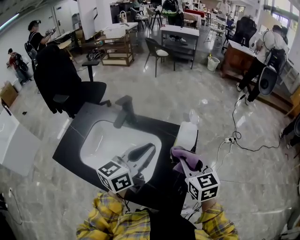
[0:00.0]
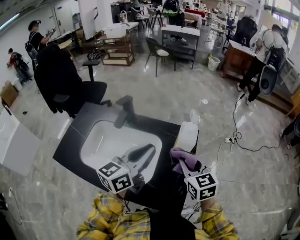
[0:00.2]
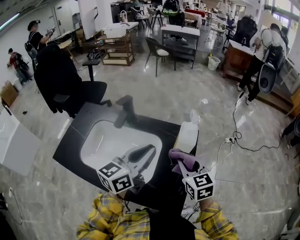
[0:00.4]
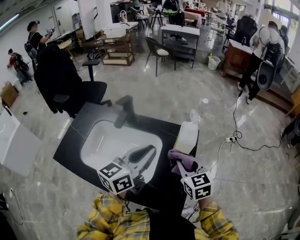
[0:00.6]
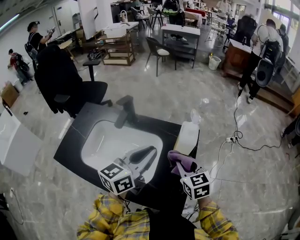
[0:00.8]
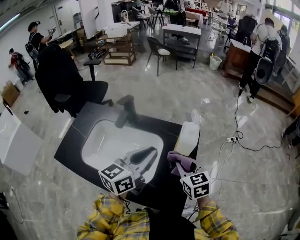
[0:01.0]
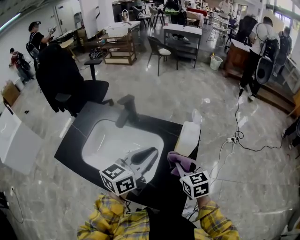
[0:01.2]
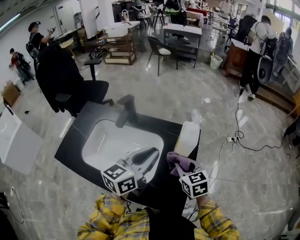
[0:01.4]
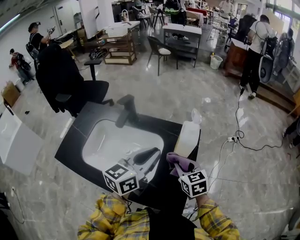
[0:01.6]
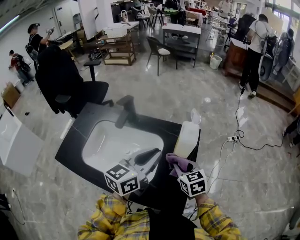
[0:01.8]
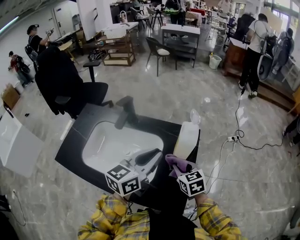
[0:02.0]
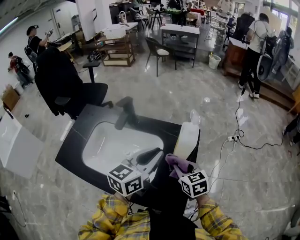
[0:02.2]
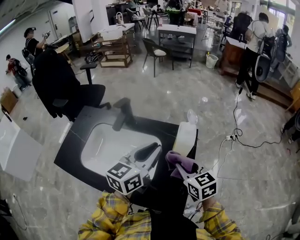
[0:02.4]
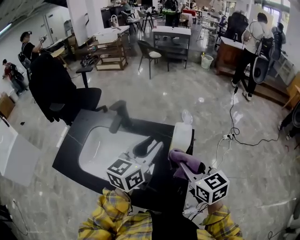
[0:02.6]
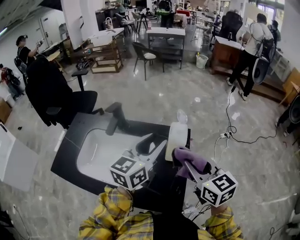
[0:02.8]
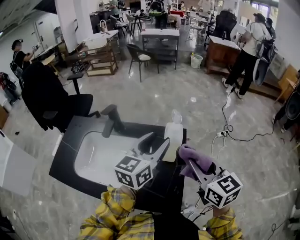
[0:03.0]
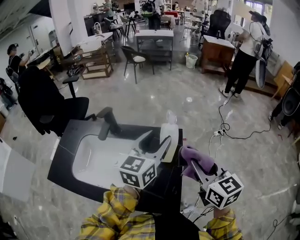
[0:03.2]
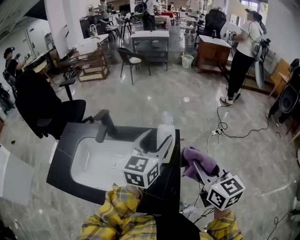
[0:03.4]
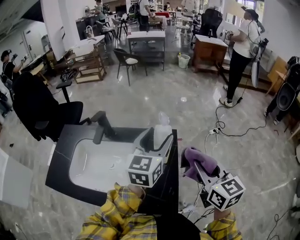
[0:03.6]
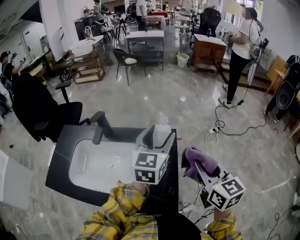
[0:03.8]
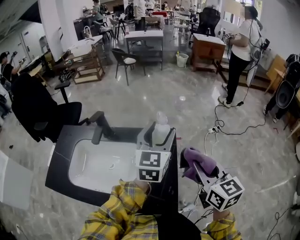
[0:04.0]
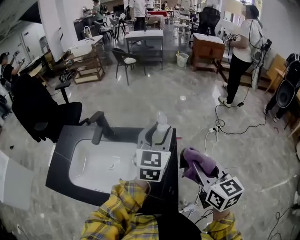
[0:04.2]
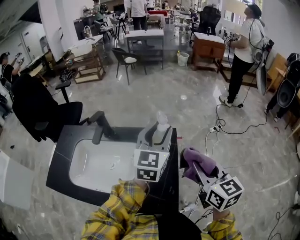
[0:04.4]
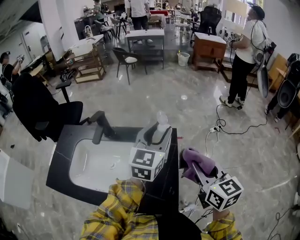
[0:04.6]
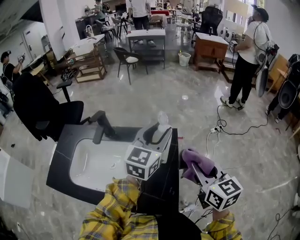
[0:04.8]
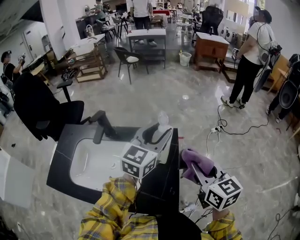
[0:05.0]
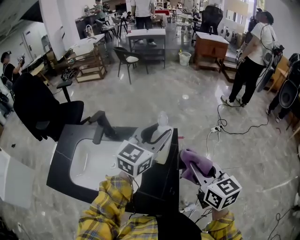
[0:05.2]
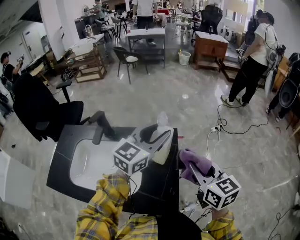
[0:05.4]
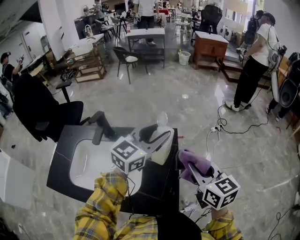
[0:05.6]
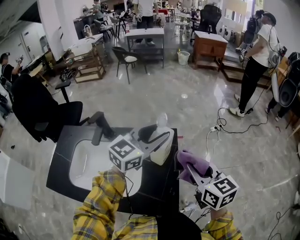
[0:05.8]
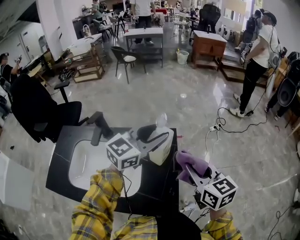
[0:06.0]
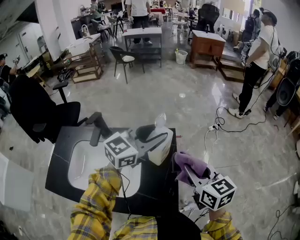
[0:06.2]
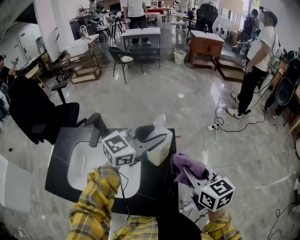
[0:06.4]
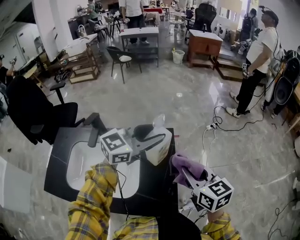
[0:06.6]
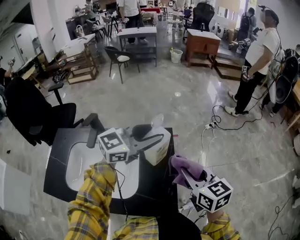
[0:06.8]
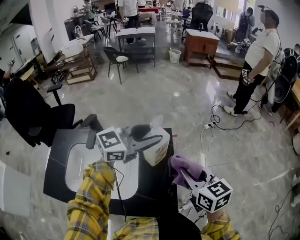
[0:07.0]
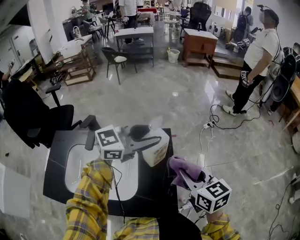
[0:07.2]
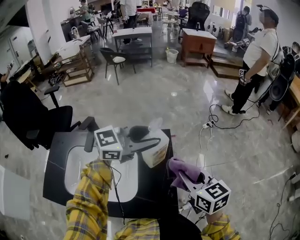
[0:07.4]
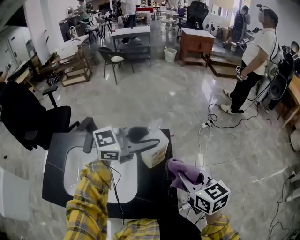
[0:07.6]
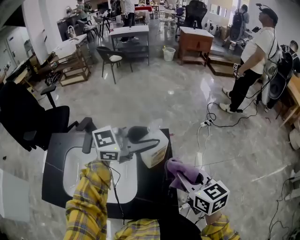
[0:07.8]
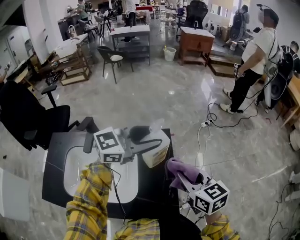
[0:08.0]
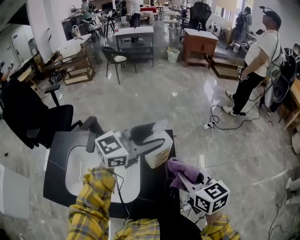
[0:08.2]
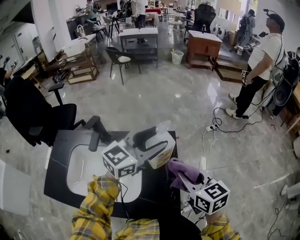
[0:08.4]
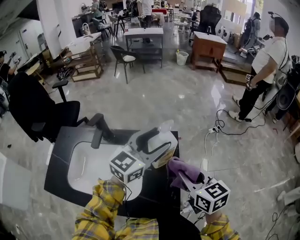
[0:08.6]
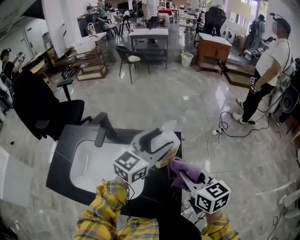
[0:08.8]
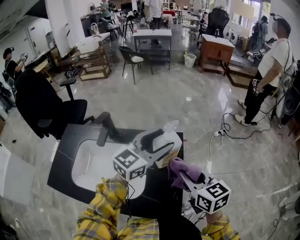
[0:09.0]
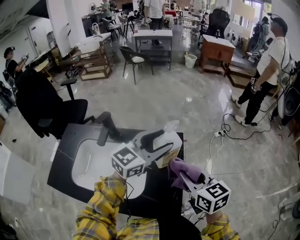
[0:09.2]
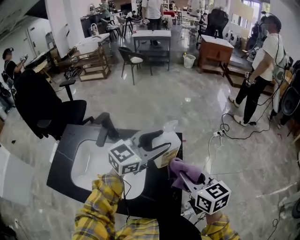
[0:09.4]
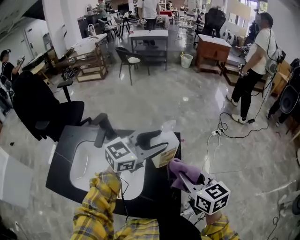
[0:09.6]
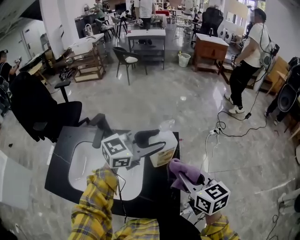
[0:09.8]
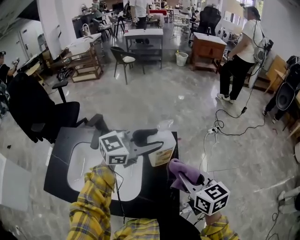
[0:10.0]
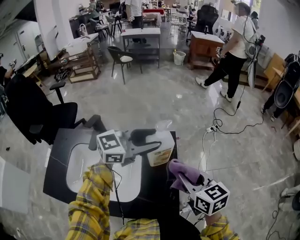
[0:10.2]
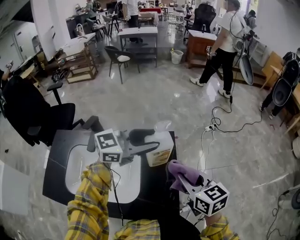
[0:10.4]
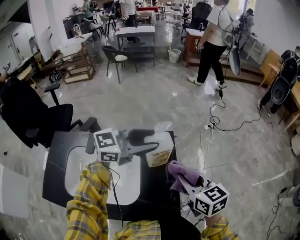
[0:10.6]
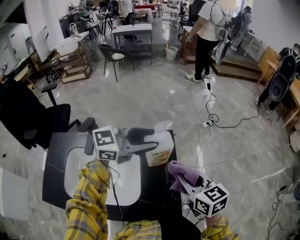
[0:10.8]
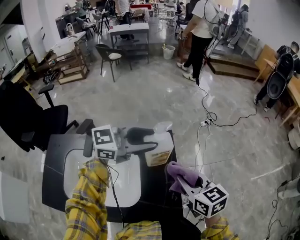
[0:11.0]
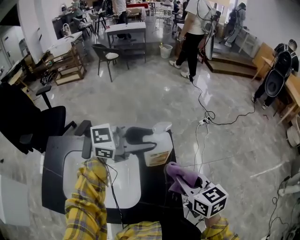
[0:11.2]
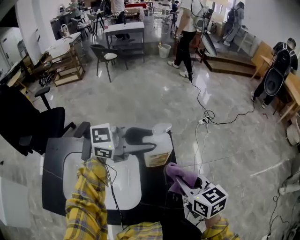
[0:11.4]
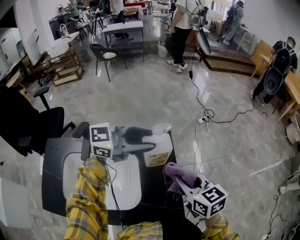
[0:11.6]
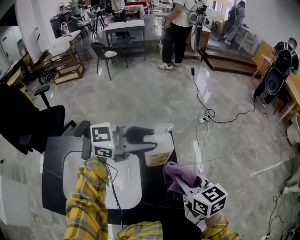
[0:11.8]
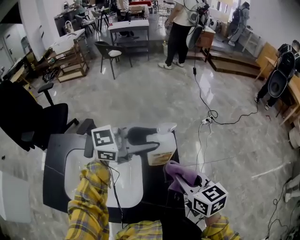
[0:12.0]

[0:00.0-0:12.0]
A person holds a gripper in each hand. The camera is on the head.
0:00.0 to 0:01.6: The right gripper shifts about 10 cm downward.
0:01.6 to 0:03.0: The right gripper goes about 20 cm upward and to the right, while the left gripper travels to the right by some 5 cm, and opens.
0:03.0 to 0:04.4: Both grippers travel together to the right, approximately 5 cm.
0:04.4 to 0:06.0: The left gripper rotates about 40 degrees.
0:06.0 to 0:07.6: The left gripper rotates about 20 degrees.
0:07.6 to 0:09.0: The left gripper swivels roughly 30 degrees, and opens up.
0:09.0 to 0:10.4: The left gripper swivels approximately 30 degrees.
0:10.4 to 0:12.0: The grippers stay close to where they were, moving slightly.

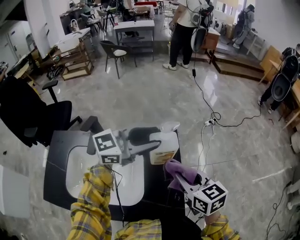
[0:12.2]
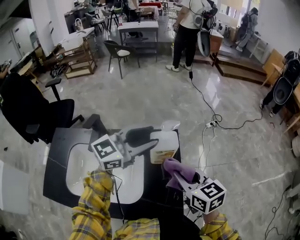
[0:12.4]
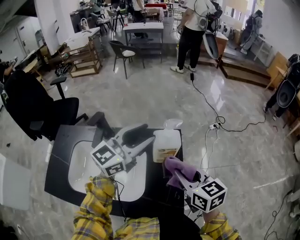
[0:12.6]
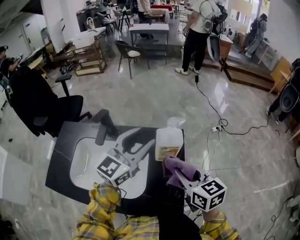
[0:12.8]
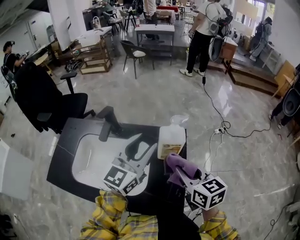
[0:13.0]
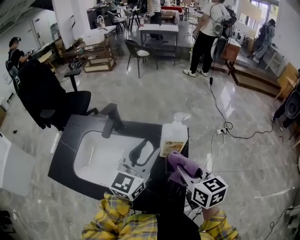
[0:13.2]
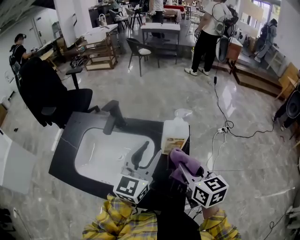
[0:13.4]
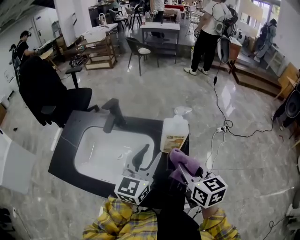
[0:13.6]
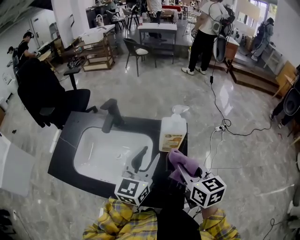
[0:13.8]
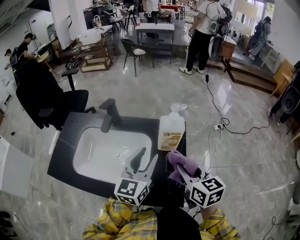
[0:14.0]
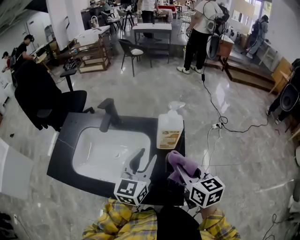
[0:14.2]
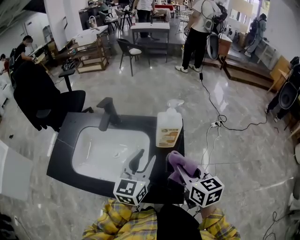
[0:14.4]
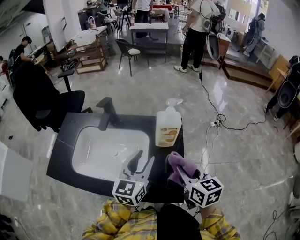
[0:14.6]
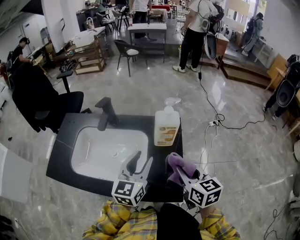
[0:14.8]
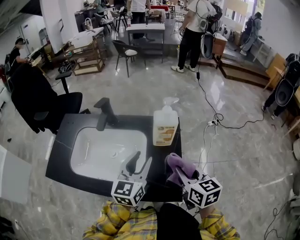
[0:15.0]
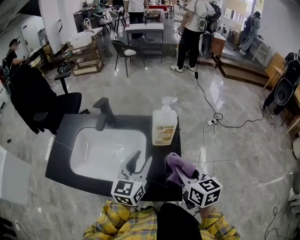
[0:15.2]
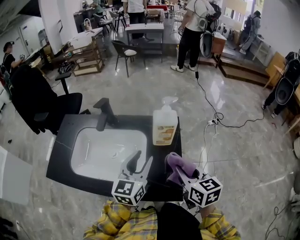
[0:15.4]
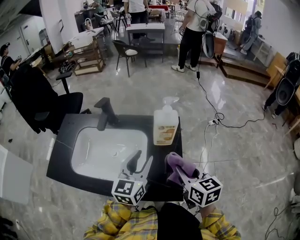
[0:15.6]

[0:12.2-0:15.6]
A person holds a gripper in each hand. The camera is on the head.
0:12.2 to 0:13.8: The left gripper changes place by some 15 cm, and turns by about 60 degrees.
0:13.8 to 0:15.6: The right gripper moves about 5 cm.

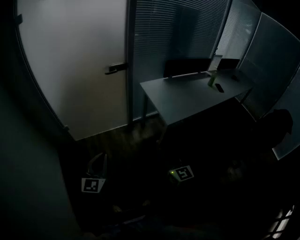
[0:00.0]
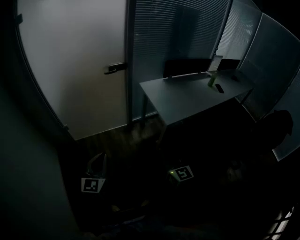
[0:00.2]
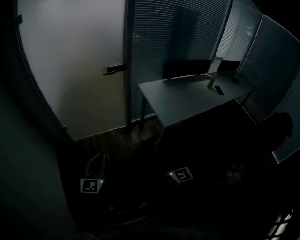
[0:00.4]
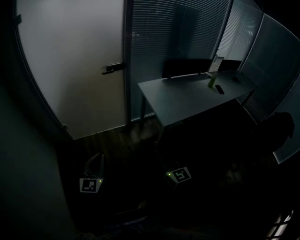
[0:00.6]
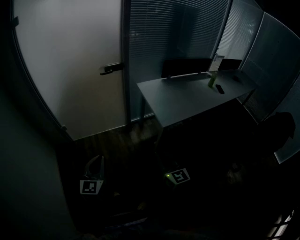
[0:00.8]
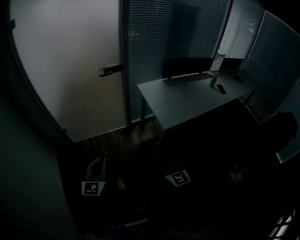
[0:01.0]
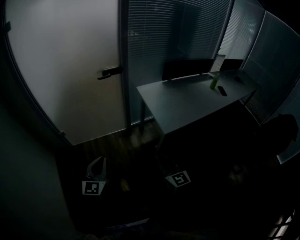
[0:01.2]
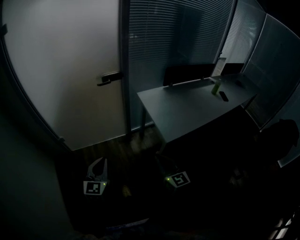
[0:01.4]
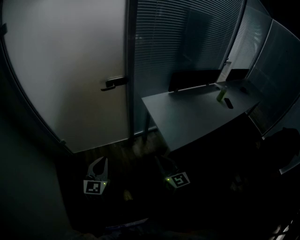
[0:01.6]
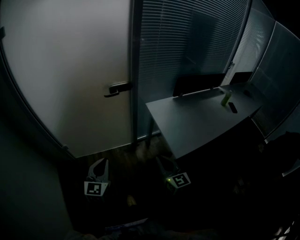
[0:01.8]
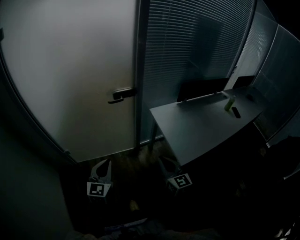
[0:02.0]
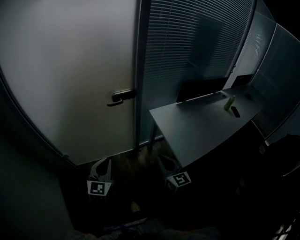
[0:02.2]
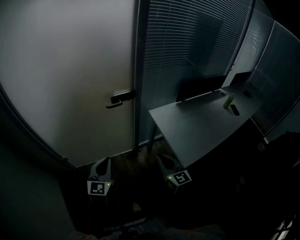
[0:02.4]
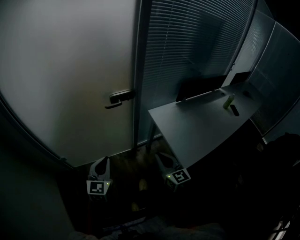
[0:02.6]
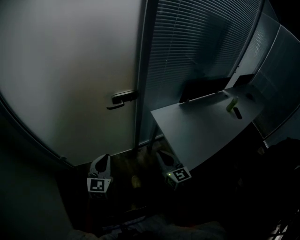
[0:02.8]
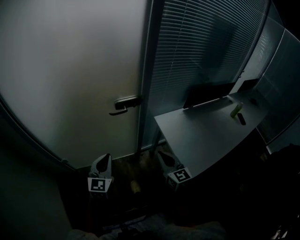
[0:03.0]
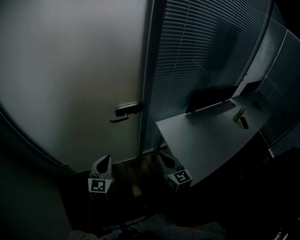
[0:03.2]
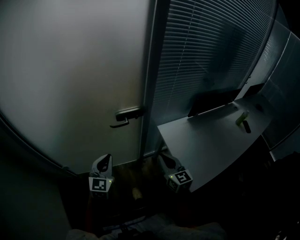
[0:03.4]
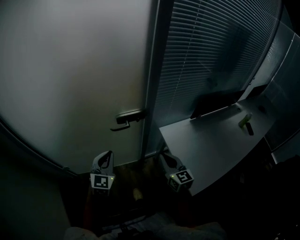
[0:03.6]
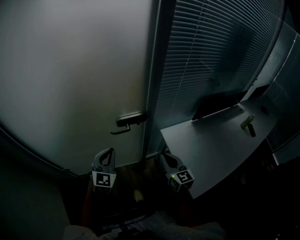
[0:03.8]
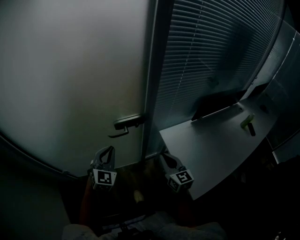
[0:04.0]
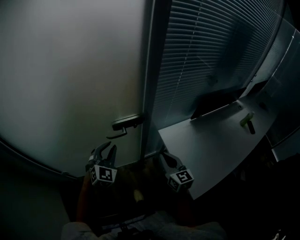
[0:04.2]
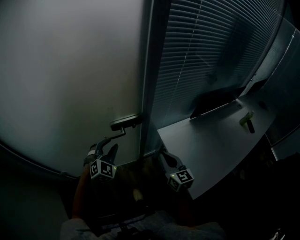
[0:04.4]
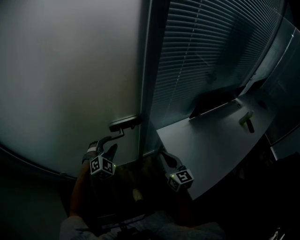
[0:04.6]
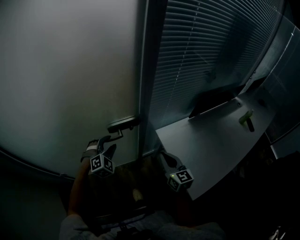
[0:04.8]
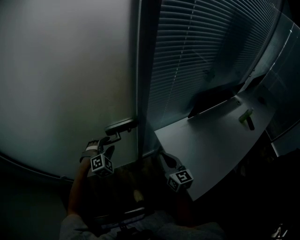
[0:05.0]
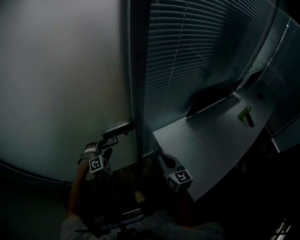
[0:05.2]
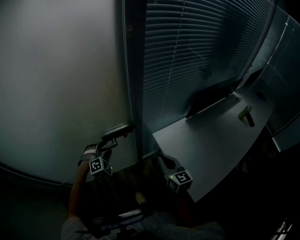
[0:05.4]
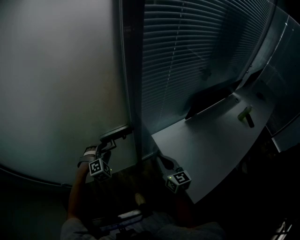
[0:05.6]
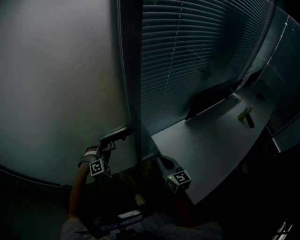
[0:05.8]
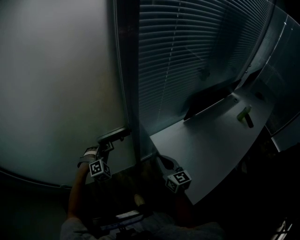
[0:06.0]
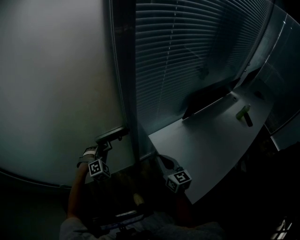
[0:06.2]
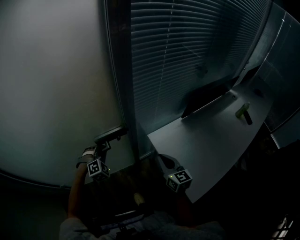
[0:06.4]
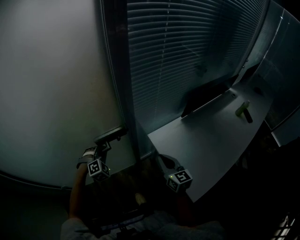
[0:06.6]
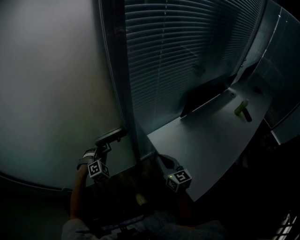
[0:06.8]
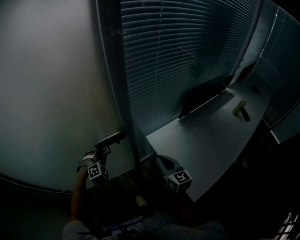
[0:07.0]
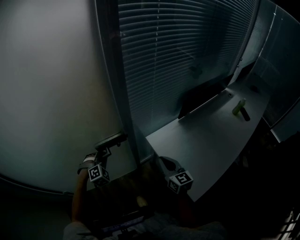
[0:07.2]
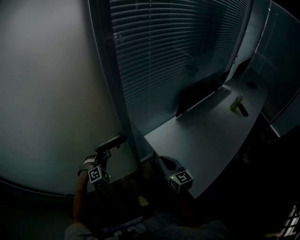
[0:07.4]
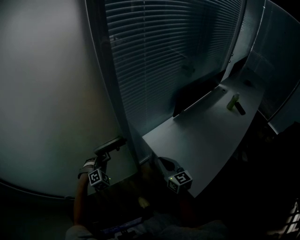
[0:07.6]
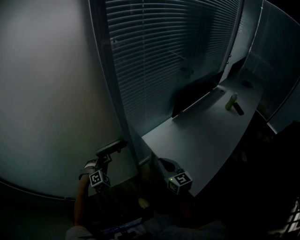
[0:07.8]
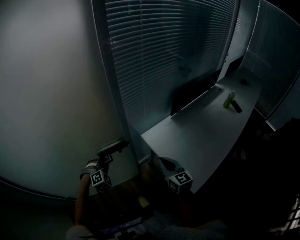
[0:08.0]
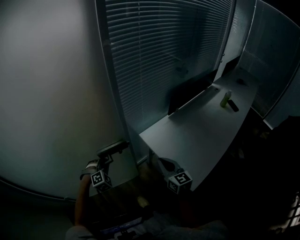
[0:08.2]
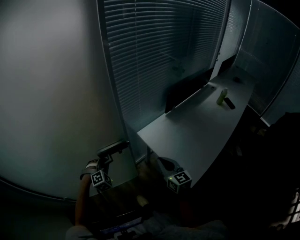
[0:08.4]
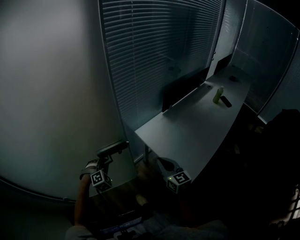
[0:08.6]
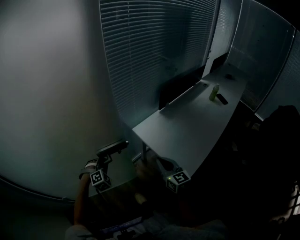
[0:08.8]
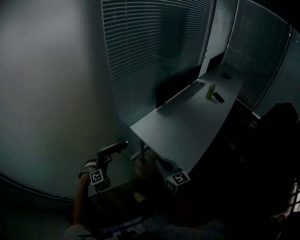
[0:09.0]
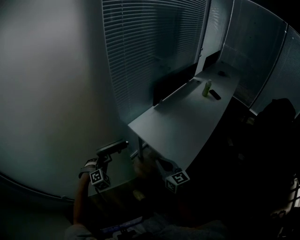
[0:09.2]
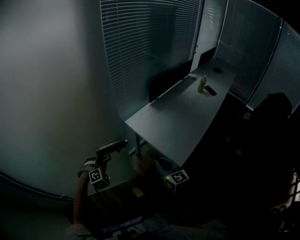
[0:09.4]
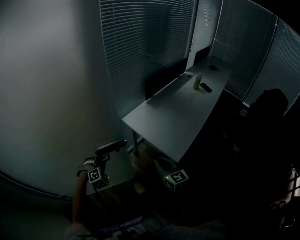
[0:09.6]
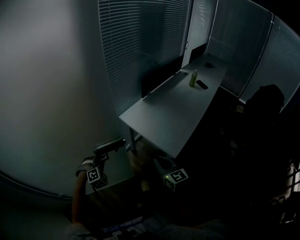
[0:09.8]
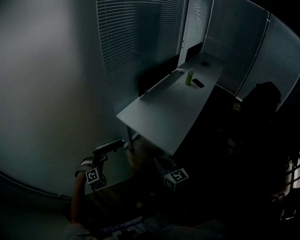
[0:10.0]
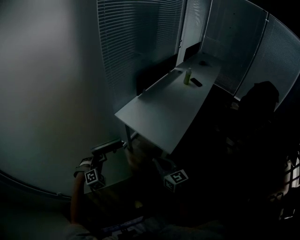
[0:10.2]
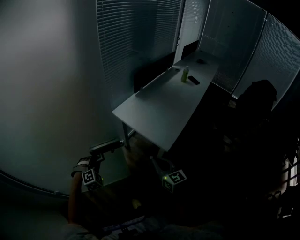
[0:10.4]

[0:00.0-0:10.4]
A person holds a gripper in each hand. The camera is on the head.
0:00.0 to 0:01.4: The left gripper is displaced forward and to the right by roughly 15 cm. Meanwhile the right gripper travels forward by about 10 cm.
0:01.4 to 0:03.0: Both grippers travel together forward, about 30 cm.
0:03.0 to 0:04.4: Both grippers travel together forward, some 20 cm. The left gripper rotates roughly 40 degrees, and opens.
0:04.4 to 0:06.0: The right gripper ends up roughly 5 cm from where it was. The left gripper travels downward and forward by some 10 cm, rotates approximately 30 degrees, and closes its fingers.
0:06.0 to 0:07.4: There are only small adjustments of the grippers.
0:07.4 to 0:09.0: Both grippers travel together backward, about 15 cm.
0:09.0 to 0:10.4: Both grippers move backward, roughly 15 cm.
